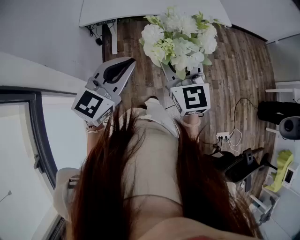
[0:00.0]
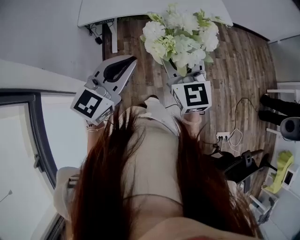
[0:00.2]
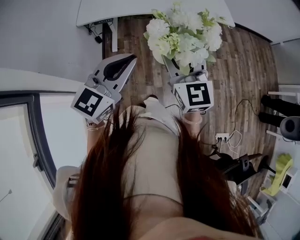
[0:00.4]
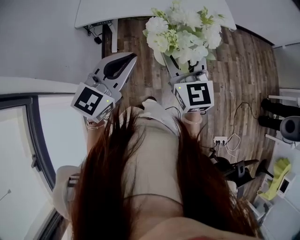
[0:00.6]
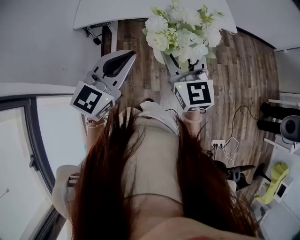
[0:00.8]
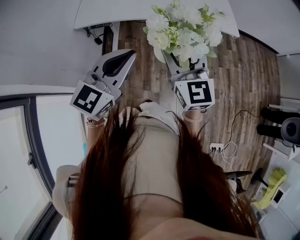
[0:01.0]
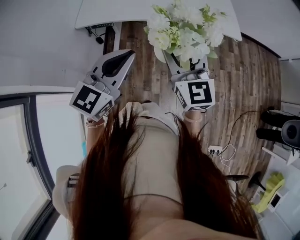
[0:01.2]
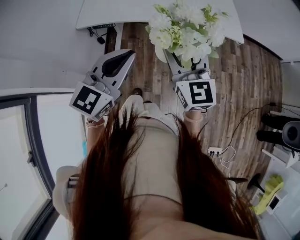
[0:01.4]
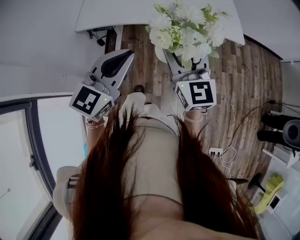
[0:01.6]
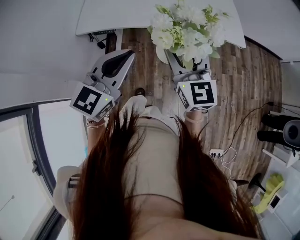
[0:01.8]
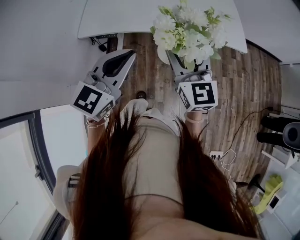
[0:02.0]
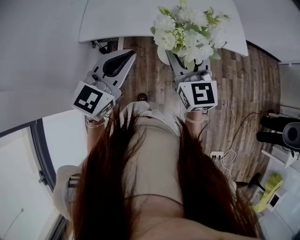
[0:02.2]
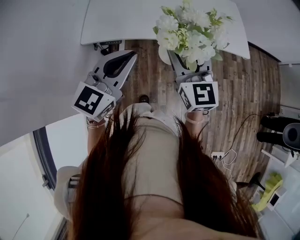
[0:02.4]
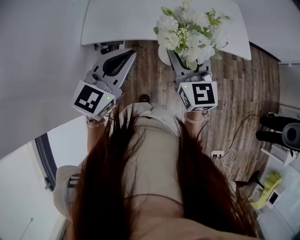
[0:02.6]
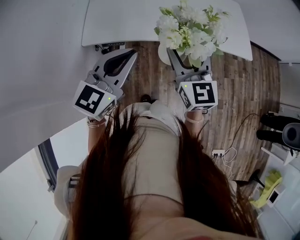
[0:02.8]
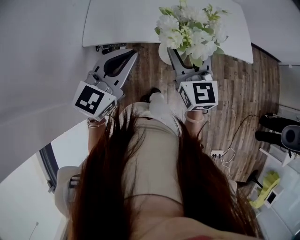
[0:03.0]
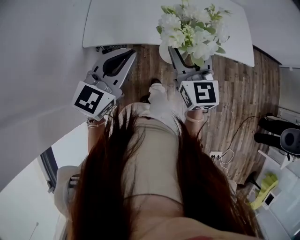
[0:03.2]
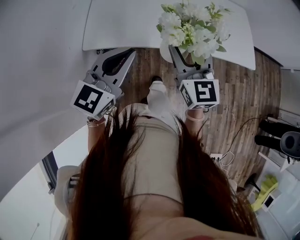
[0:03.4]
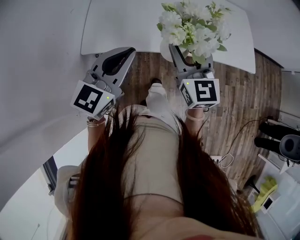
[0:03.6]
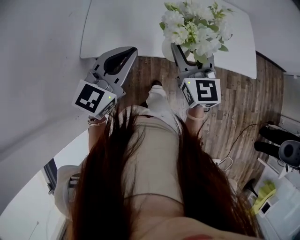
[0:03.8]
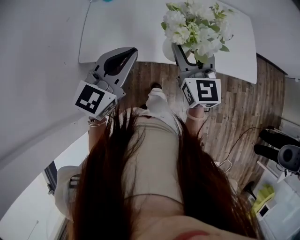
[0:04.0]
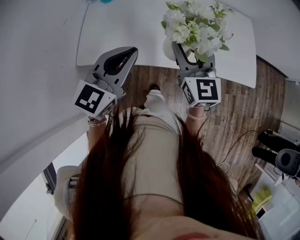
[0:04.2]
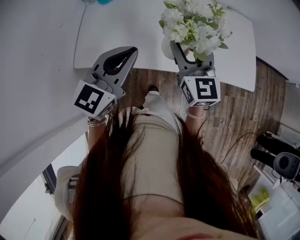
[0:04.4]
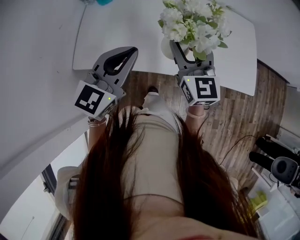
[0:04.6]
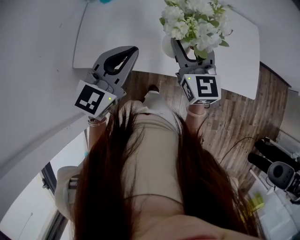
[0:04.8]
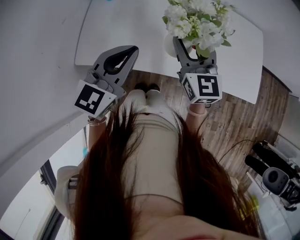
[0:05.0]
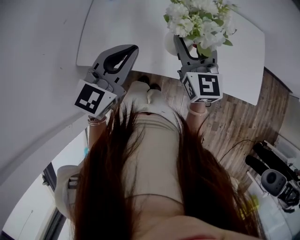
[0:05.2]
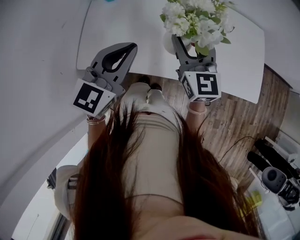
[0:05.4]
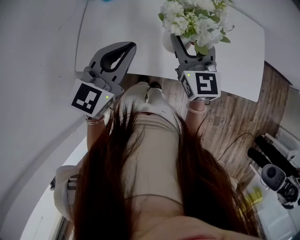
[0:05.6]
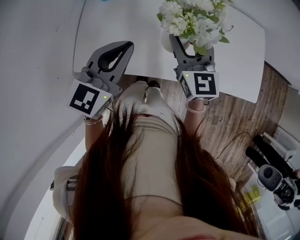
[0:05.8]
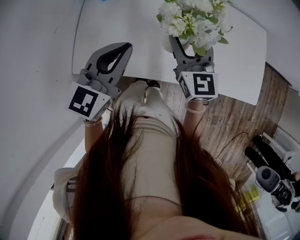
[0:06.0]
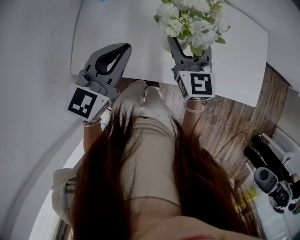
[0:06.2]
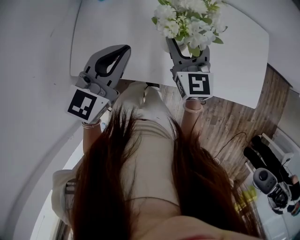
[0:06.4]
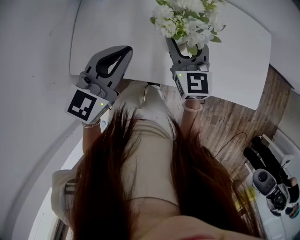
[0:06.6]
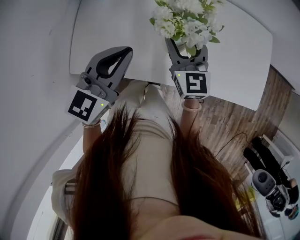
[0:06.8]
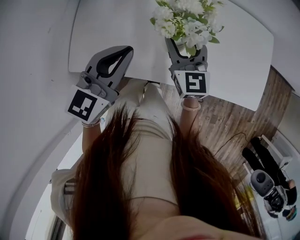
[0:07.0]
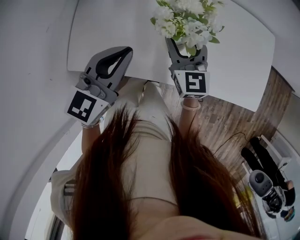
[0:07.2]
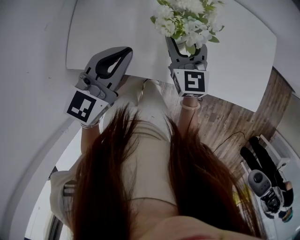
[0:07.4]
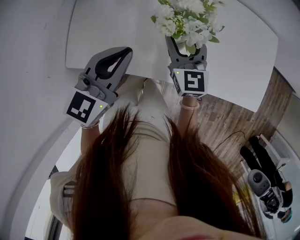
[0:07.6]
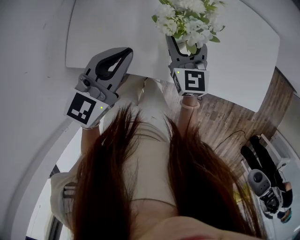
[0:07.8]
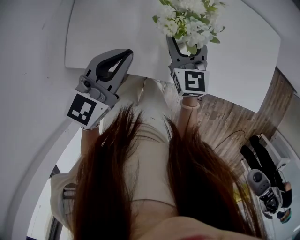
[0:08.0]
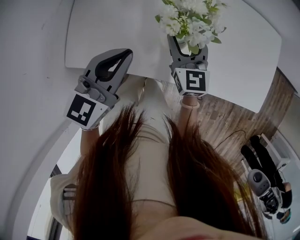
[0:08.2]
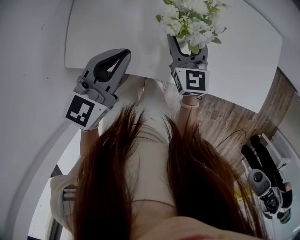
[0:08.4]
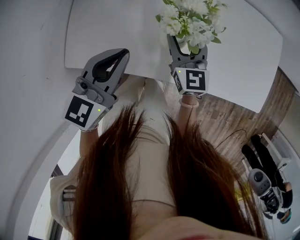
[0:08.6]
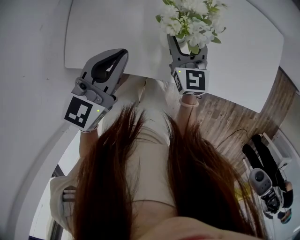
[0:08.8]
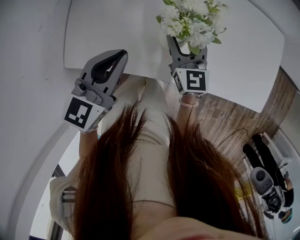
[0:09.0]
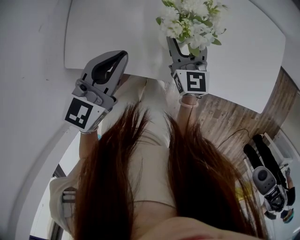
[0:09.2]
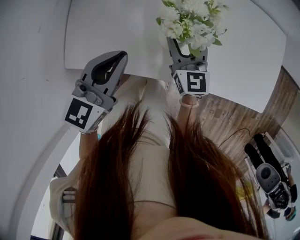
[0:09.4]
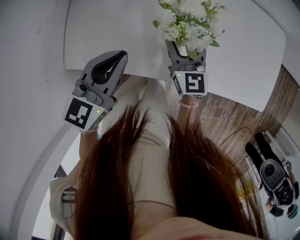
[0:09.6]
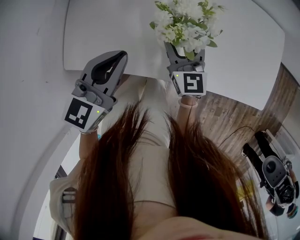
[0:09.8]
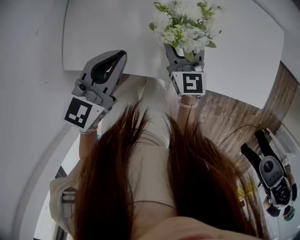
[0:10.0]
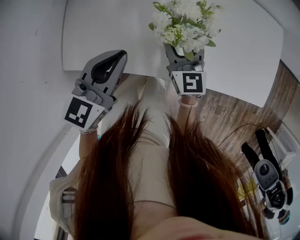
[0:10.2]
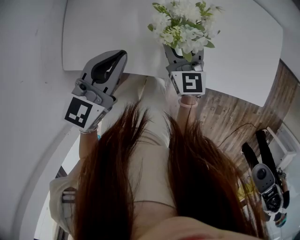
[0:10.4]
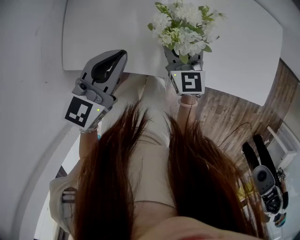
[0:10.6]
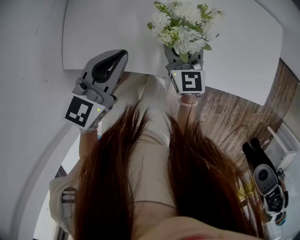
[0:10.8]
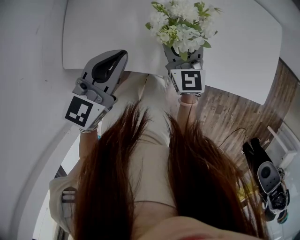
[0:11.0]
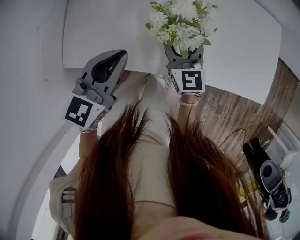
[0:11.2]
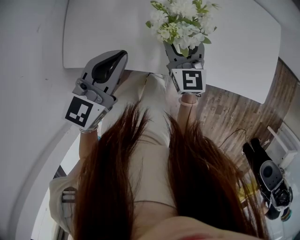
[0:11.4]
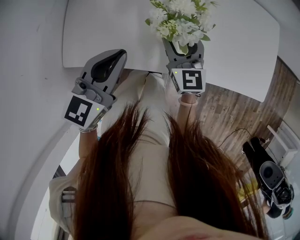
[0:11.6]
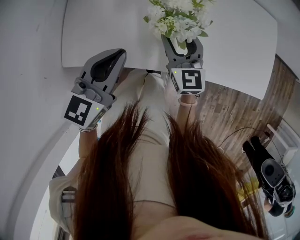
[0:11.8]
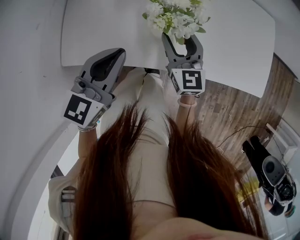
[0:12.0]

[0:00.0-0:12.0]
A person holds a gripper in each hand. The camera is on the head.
0:00.0 to 0:06.0: The grippers stay close to where they were, moving slightly.
0:06.0 to 0:07.6: The left gripper changes place by some 5 cm.
0:07.6 to 0:12.0: The grippers make only small movements.

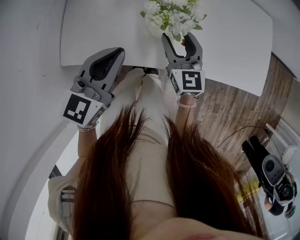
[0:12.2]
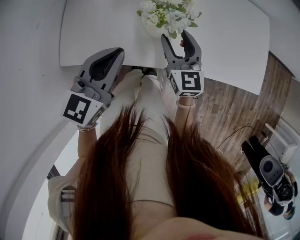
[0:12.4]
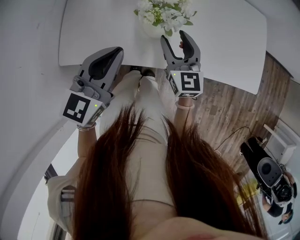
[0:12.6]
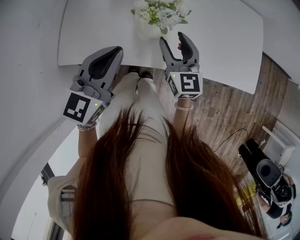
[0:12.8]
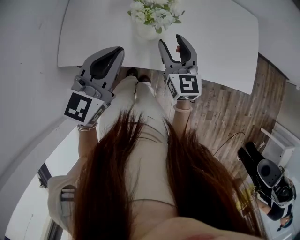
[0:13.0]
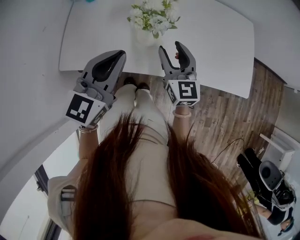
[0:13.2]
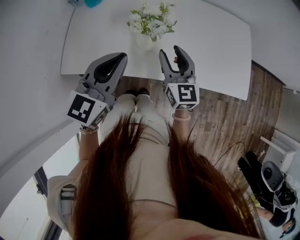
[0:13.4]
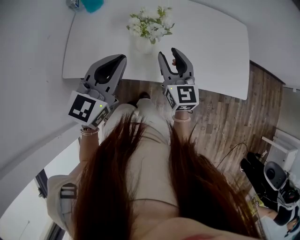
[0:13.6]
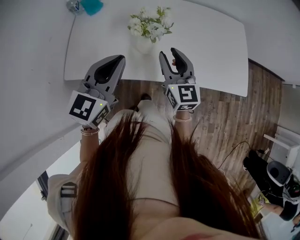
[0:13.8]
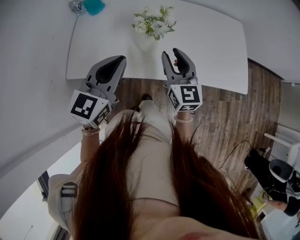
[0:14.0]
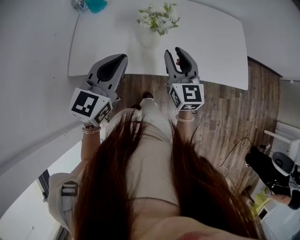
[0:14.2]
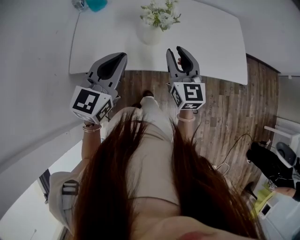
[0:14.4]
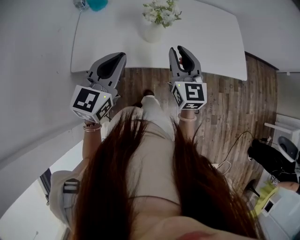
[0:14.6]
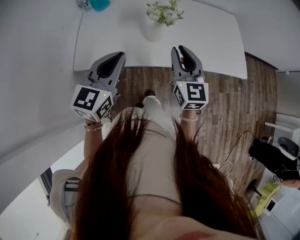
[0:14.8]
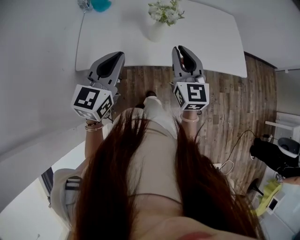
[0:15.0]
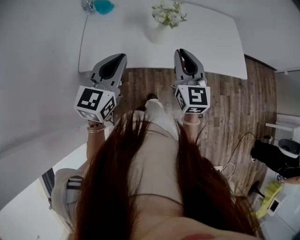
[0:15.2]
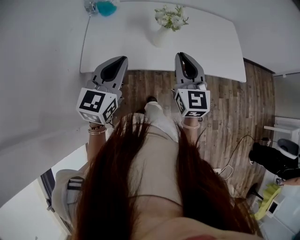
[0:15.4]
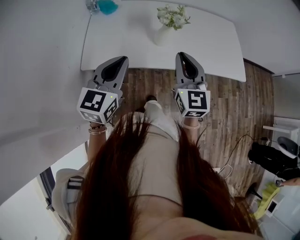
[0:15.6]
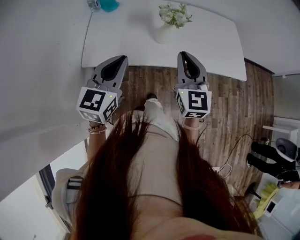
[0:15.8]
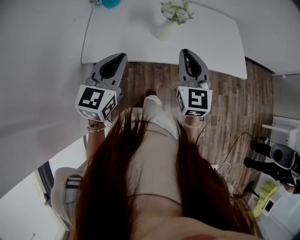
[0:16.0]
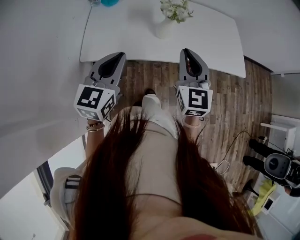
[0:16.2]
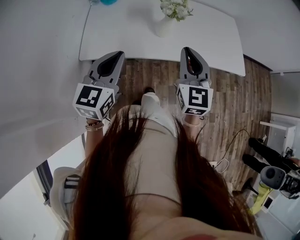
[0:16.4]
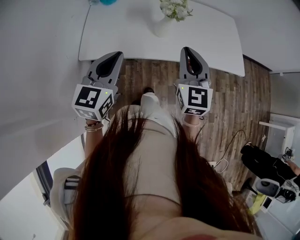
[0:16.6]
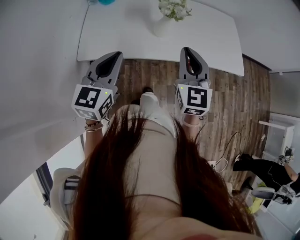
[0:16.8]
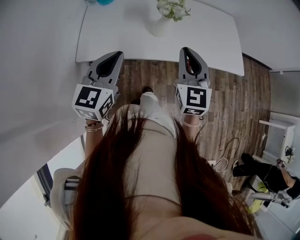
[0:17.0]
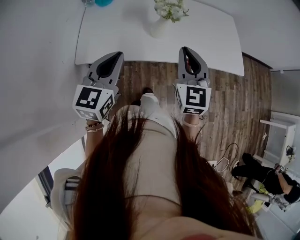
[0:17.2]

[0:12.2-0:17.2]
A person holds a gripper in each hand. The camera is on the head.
0:12.2 to 0:13.8: The left gripper goes some 5 cm upward. The right gripper travels upward and backward by roughly 10 cm.
0:13.8 to 0:15.6: The right gripper shifts about 20 cm backward and upward, and closes its fingers, while the left gripper goes approximately 20 cm backward and to the left.
0:15.6 to 0:17.2: The grippers move only a little.

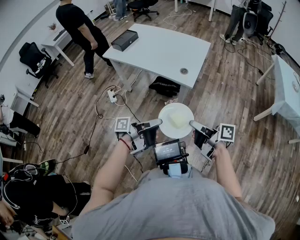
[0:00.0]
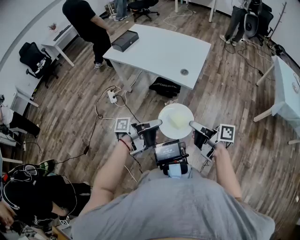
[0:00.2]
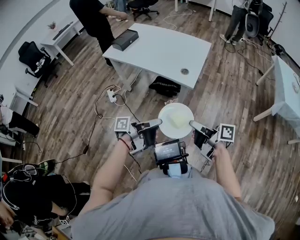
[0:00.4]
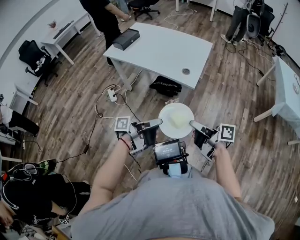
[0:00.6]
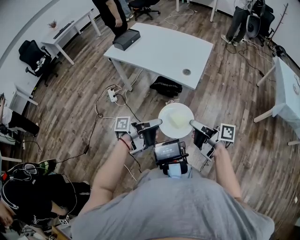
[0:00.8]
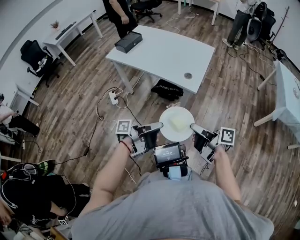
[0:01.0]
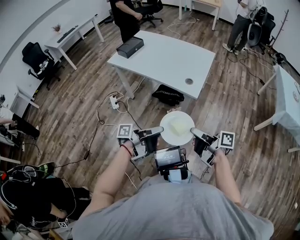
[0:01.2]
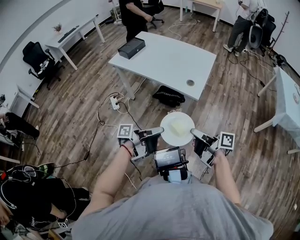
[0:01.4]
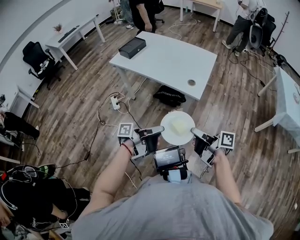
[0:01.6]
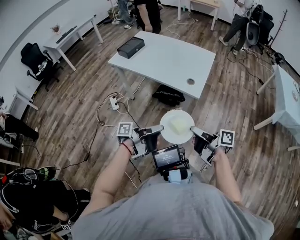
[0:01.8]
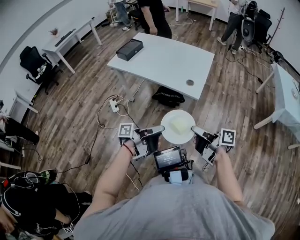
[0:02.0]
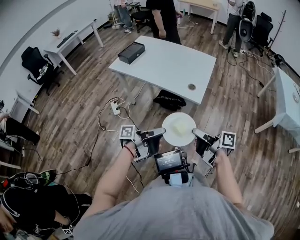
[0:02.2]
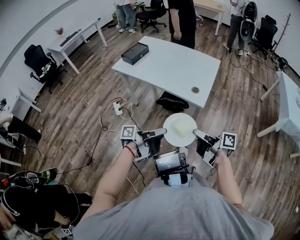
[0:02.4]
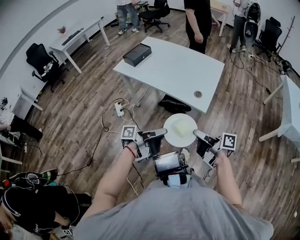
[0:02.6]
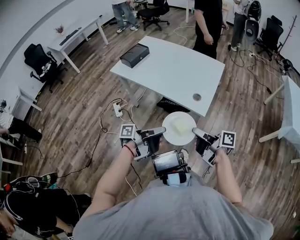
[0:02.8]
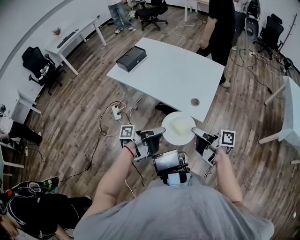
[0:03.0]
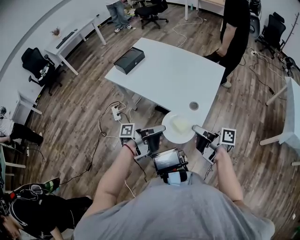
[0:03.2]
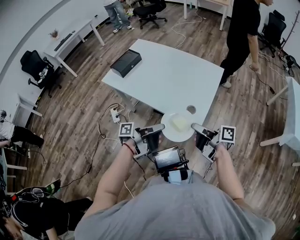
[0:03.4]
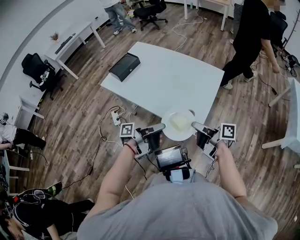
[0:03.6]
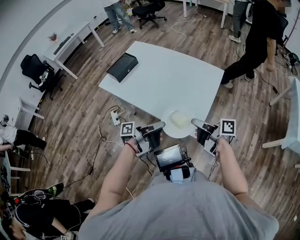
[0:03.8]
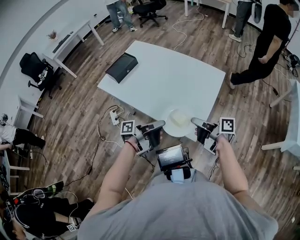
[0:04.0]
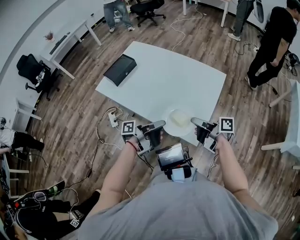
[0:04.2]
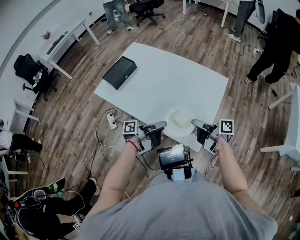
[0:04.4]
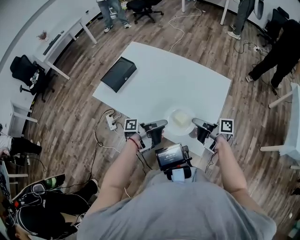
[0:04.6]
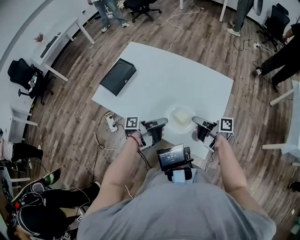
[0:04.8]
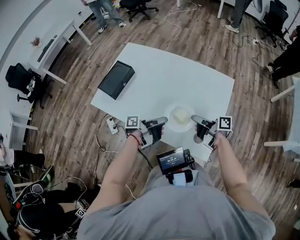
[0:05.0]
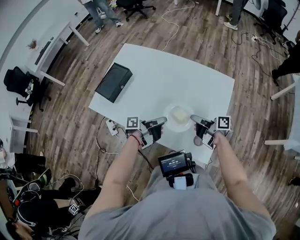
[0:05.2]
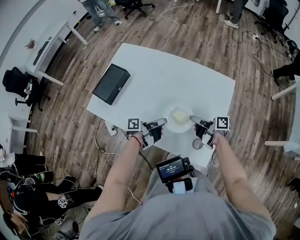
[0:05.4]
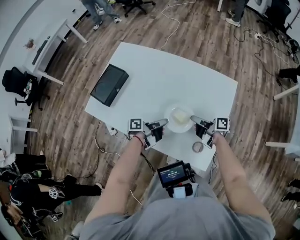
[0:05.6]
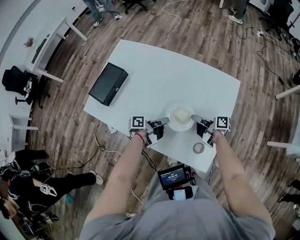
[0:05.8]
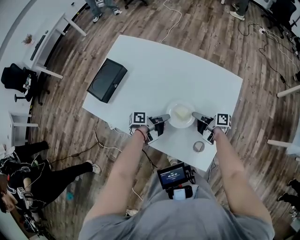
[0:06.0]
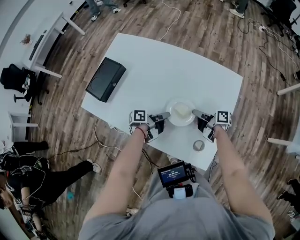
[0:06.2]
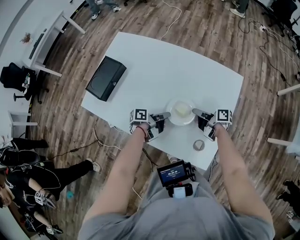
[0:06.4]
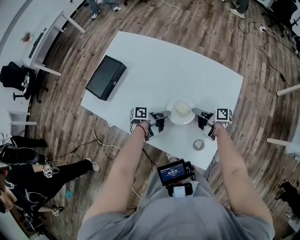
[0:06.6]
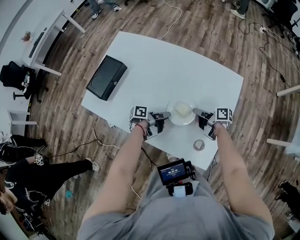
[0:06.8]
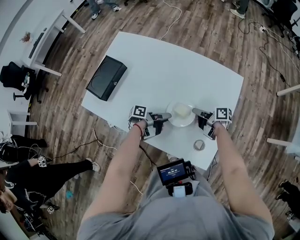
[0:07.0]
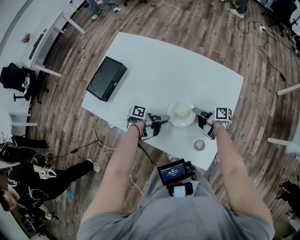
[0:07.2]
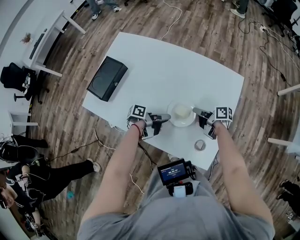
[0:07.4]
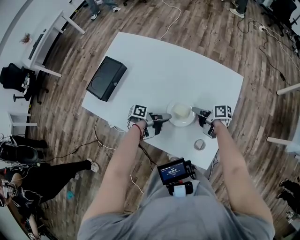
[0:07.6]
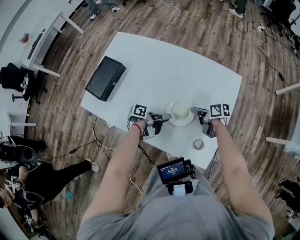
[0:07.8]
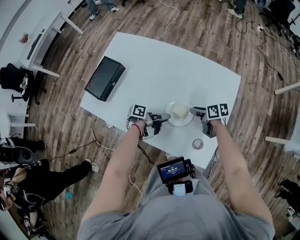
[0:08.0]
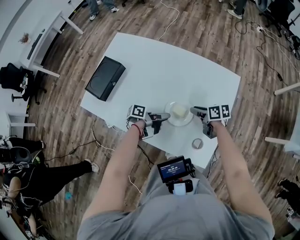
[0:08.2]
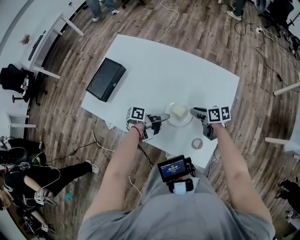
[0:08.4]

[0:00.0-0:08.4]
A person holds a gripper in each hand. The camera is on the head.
0:01.4 to 0:02.8: The right gripper moves approximately 15 cm.
0:02.8 to 0:04.2: The right gripper changes place by some 25 cm.
0:04.2 to 0:05.6: The right gripper changes place by roughly 25 cm.
0:05.6 to 0:07.0: The right gripper shifts about 5 cm downward.
0:07.0 to 0:08.4: The right gripper swivels approximately 30 degrees.
